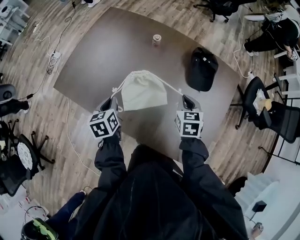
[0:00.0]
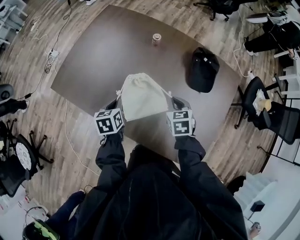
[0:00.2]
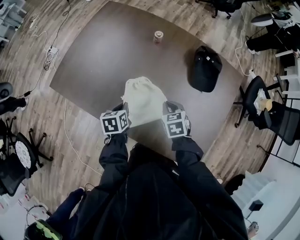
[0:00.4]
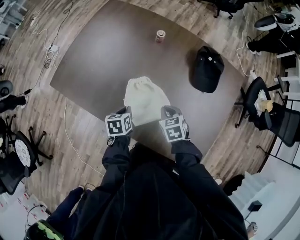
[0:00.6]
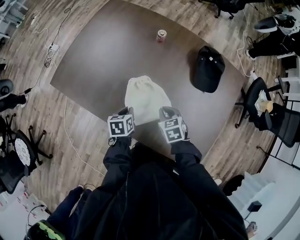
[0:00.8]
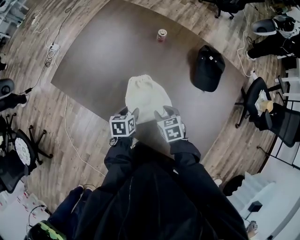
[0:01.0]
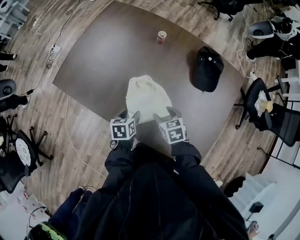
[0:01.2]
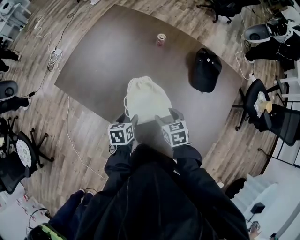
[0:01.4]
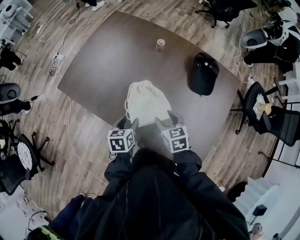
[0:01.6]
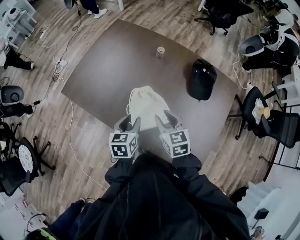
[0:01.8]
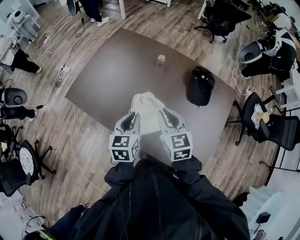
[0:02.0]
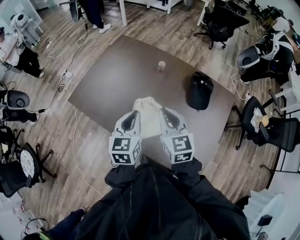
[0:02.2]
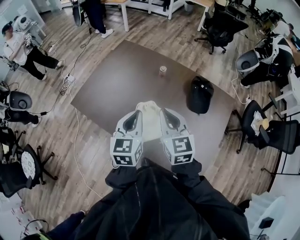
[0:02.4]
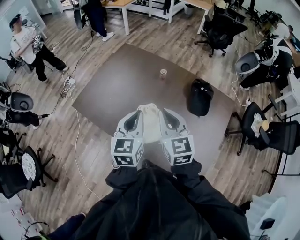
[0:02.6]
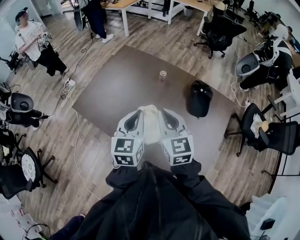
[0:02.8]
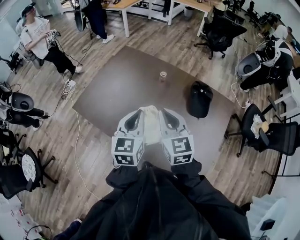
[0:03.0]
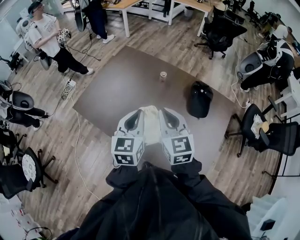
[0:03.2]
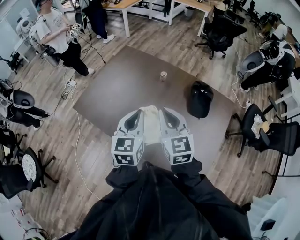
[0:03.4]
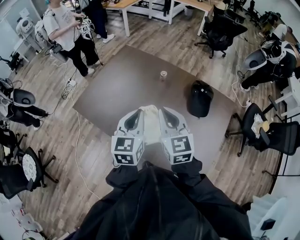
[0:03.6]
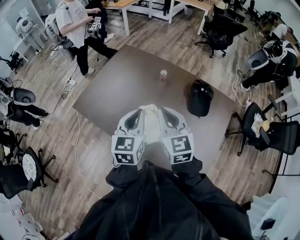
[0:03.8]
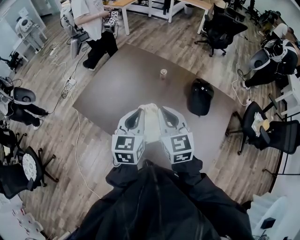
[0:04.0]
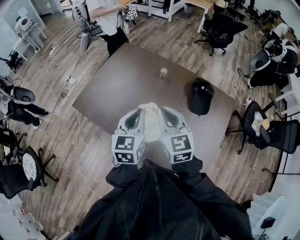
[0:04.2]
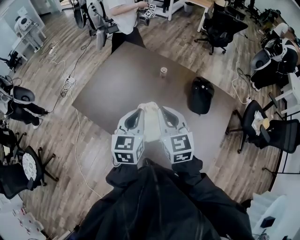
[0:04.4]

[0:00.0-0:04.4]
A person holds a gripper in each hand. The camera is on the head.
0:00.0 to 0:01.4: The left gripper travels downward, backward and to the right by about 15 cm, and opens its fingers, while the right gripper shifts some 15 cm to the left, downward and backward, changes its angle by some 20 degrees, and opens.
0:01.4 to 0:03.0: The grippers both shift upward by approximately 30 cm. The left gripper angles its fingers upward, by about 40 degrees, and closes up. Meanwhile the right gripper points its fingers about 40 degrees further upward, and closes.
0:03.0 to 0:04.4: The grippers stay close to where they were, moving slightly.

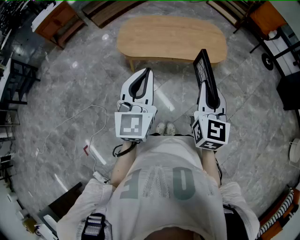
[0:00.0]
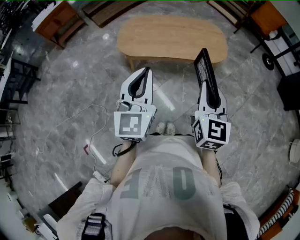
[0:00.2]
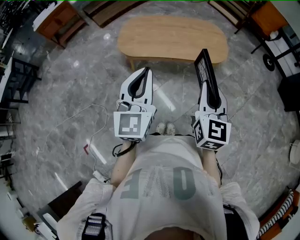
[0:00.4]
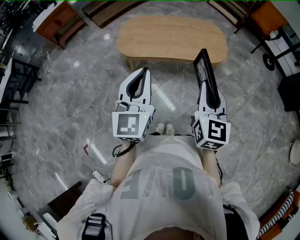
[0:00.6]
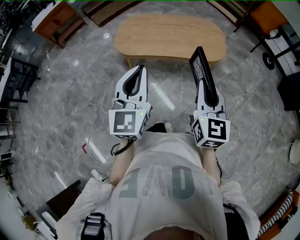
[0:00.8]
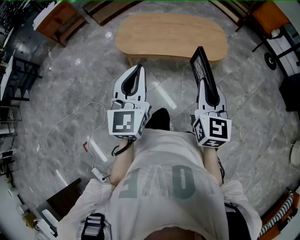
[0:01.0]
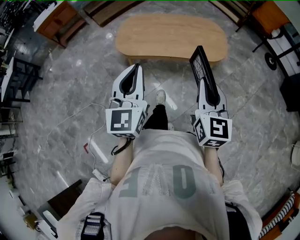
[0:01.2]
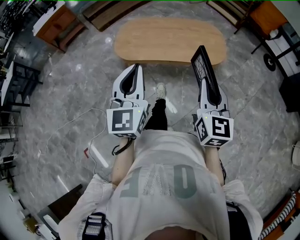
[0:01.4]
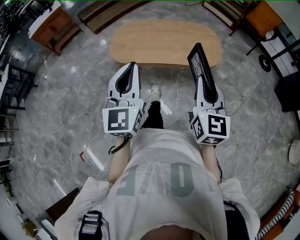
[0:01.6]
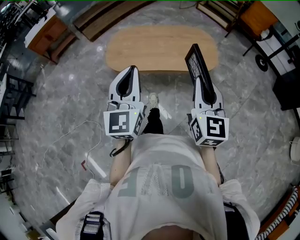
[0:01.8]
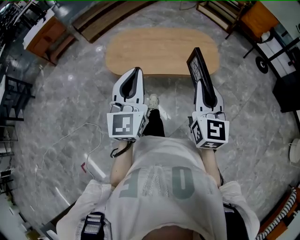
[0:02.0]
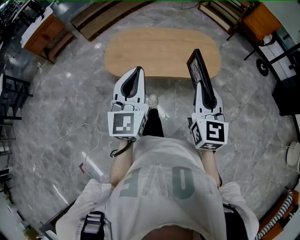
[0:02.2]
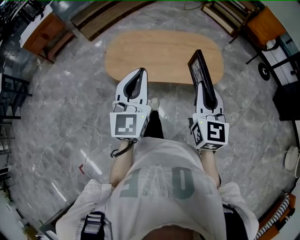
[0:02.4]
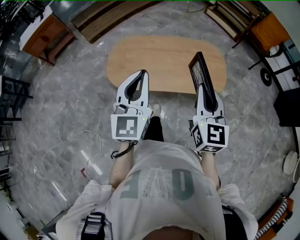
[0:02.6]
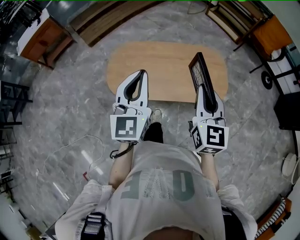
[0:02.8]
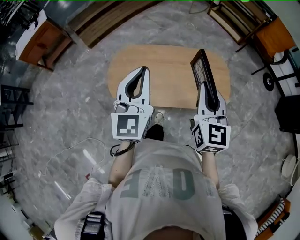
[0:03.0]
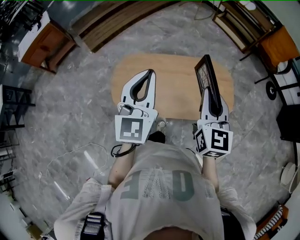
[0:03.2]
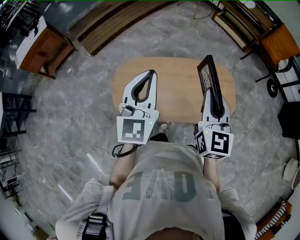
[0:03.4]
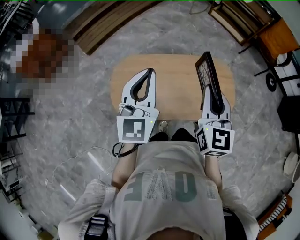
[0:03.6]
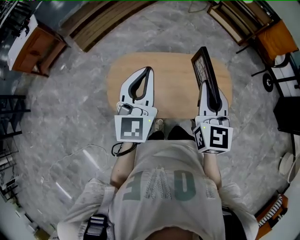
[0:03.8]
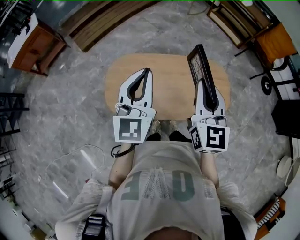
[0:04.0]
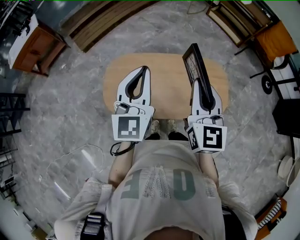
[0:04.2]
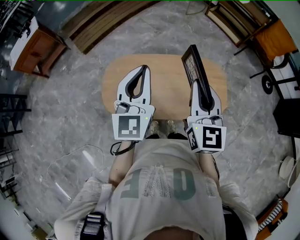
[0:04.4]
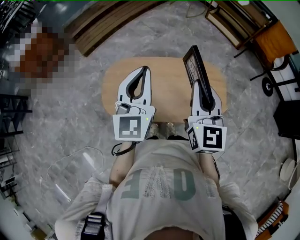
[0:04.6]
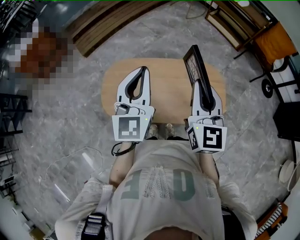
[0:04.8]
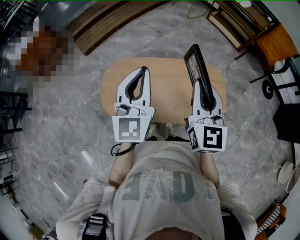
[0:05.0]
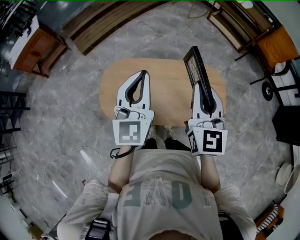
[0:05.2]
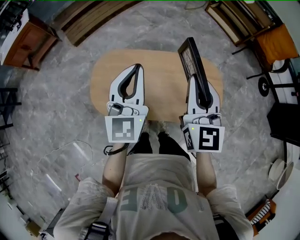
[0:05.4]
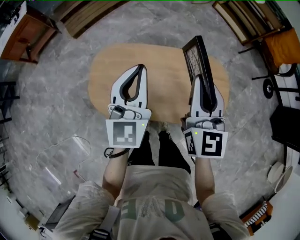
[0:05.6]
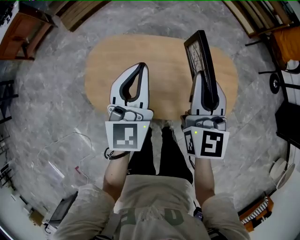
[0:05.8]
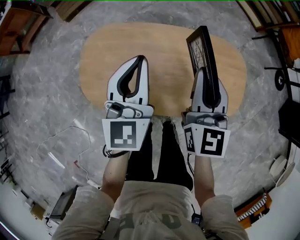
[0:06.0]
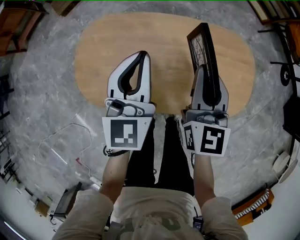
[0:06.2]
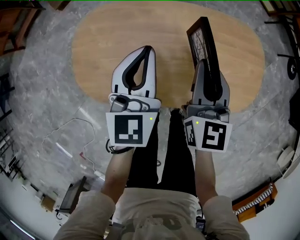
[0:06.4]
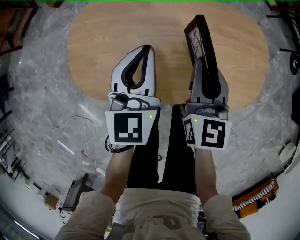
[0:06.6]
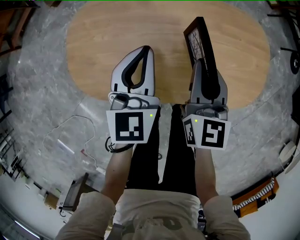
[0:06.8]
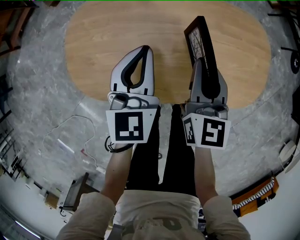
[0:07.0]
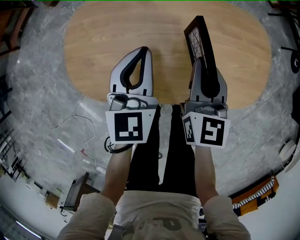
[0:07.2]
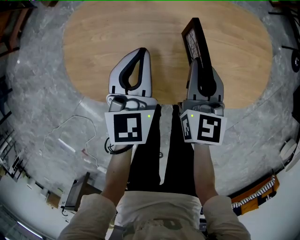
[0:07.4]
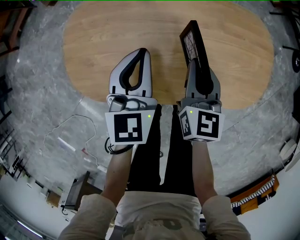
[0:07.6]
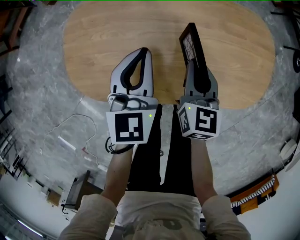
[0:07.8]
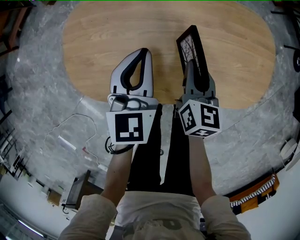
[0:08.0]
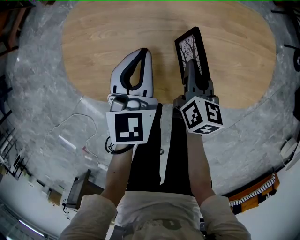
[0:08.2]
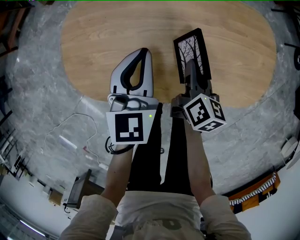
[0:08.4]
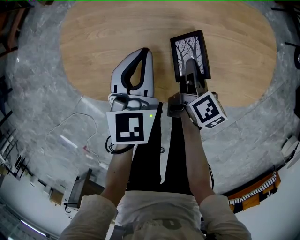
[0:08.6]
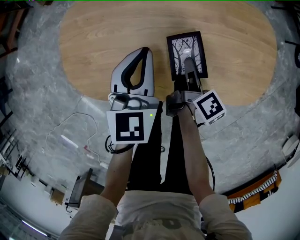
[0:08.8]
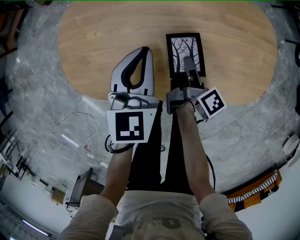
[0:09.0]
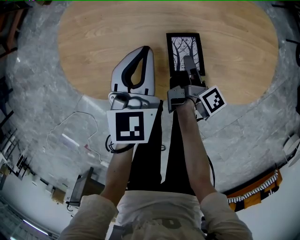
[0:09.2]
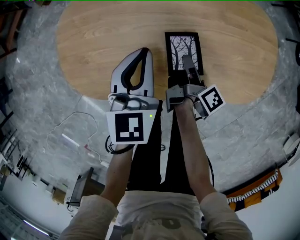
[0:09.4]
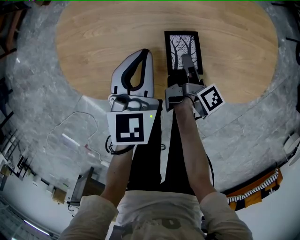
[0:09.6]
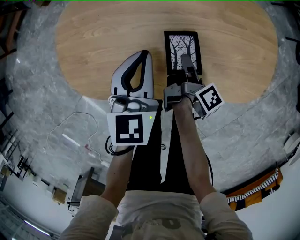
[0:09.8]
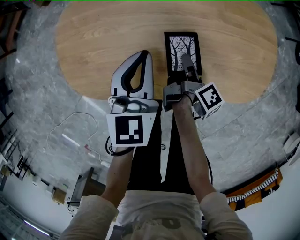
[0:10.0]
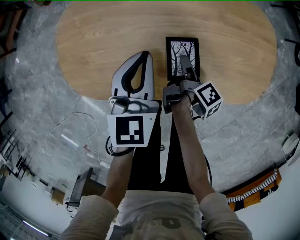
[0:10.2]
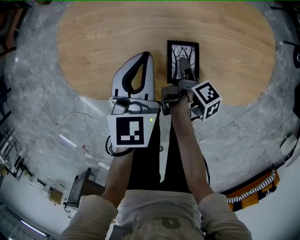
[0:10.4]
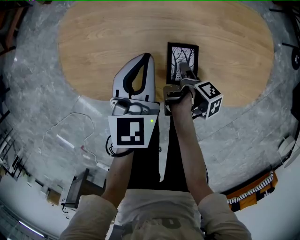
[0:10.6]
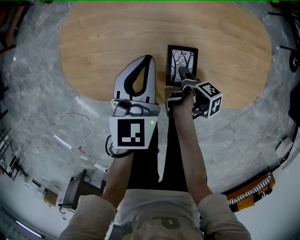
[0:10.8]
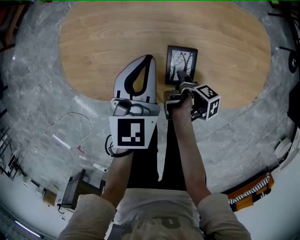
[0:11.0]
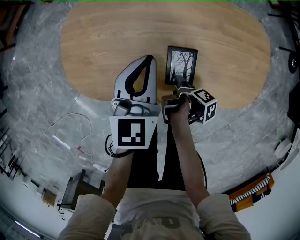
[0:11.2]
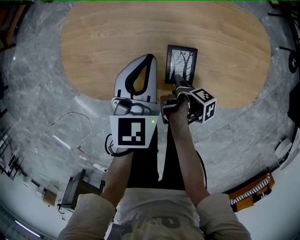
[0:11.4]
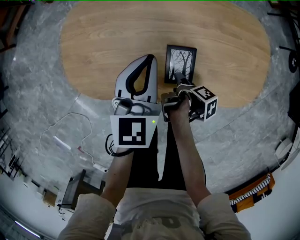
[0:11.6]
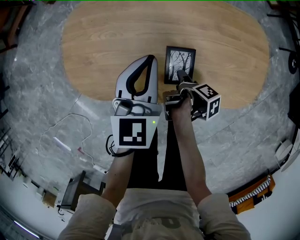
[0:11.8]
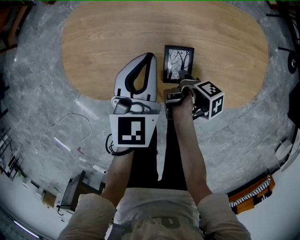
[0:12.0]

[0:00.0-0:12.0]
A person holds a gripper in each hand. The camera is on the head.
0:00.0 to 0:01.6: The right gripper shifts by about 5 cm.
0:01.6 to 0:03.0: The grippers both shift forward by about 35 cm.
0:03.0 to 0:04.4: The grippers both shift forward by approximately 10 cm.
0:04.4 to 0:06.0: The left gripper heads downward, covering some 20 cm; the right gripper shifts some 20 cm downward and forward.
0:06.0 to 0:07.6: The grippers both shift downward by roughly 20 cm.
0:07.6 to 0:09.0: The right gripper is displaced downward by about 10 cm, and twists approximately 80 degrees clockwise, seen from behind.
0:09.0 to 0:10.4: The right gripper turns by about 20 degrees, and opens its fingers.
0:10.4 to 0:12.0: The right gripper closes its fingers.

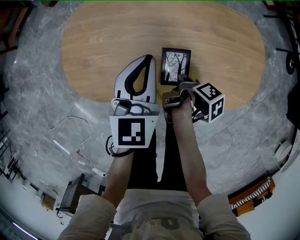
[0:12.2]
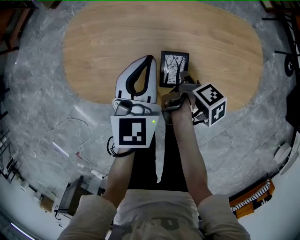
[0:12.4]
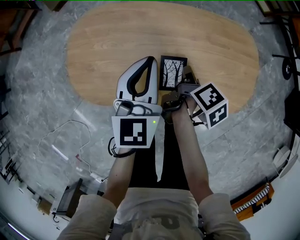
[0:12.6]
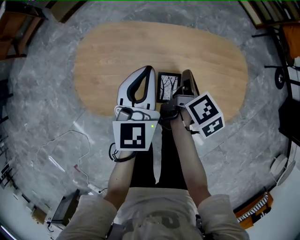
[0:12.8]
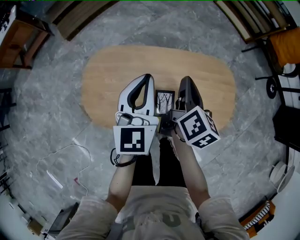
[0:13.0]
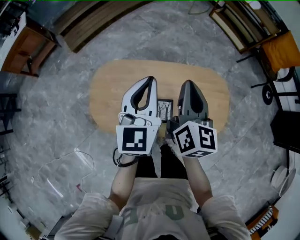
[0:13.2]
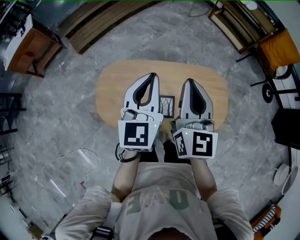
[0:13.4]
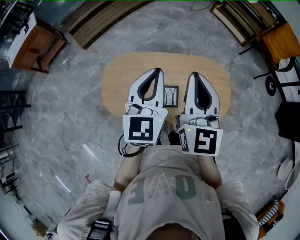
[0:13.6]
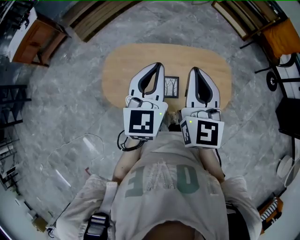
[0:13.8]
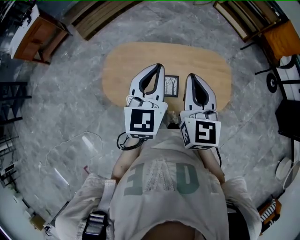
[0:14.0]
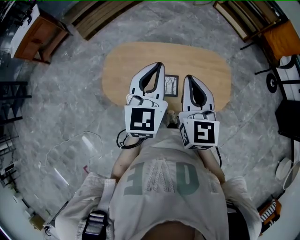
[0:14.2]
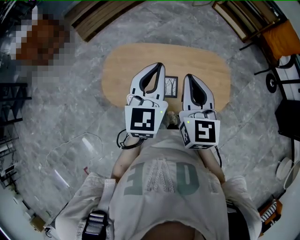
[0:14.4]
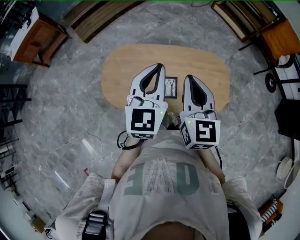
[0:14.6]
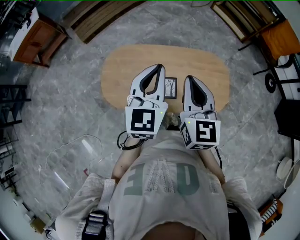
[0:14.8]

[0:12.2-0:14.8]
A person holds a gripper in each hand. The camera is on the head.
0:12.2 to 0:13.4: The right gripper travels upward by roughly 50 cm, and tips its fingers upward by roughly 60 degrees. The left gripper shifts approximately 30 cm upward.
0:13.4 to 0:14.8: The grippers both shift backward by approximately 10 cm.

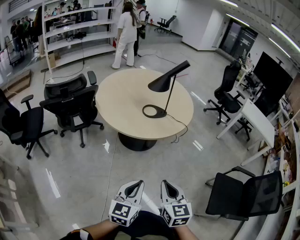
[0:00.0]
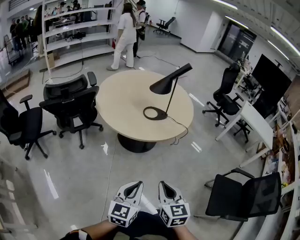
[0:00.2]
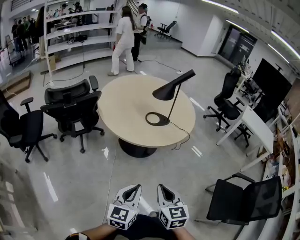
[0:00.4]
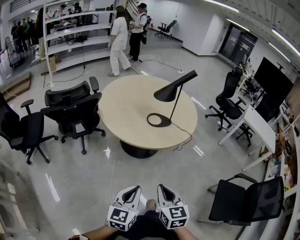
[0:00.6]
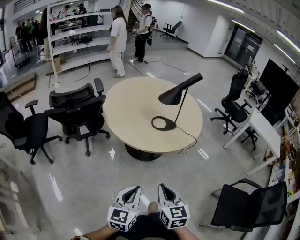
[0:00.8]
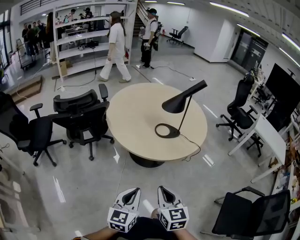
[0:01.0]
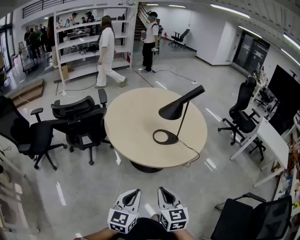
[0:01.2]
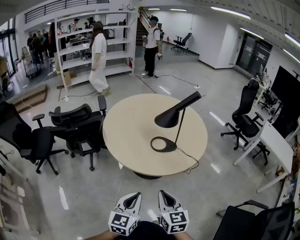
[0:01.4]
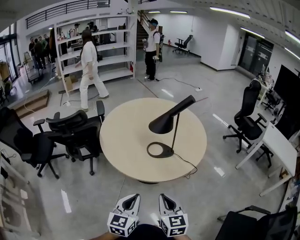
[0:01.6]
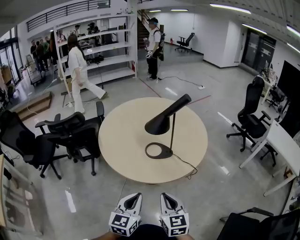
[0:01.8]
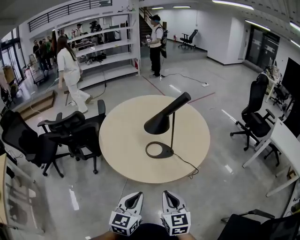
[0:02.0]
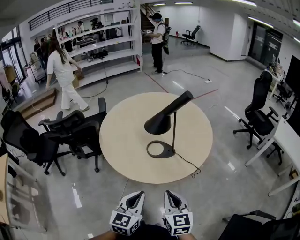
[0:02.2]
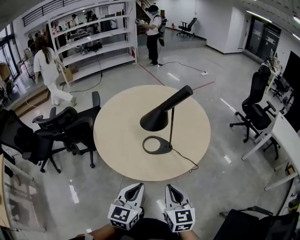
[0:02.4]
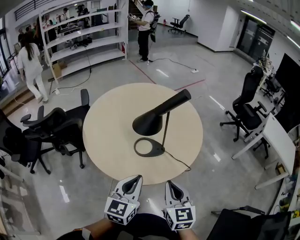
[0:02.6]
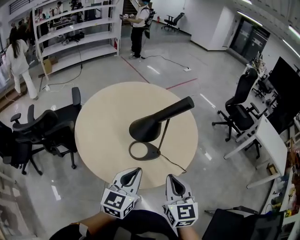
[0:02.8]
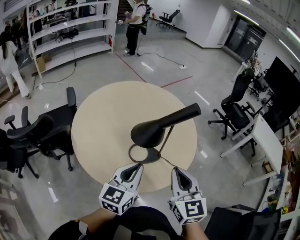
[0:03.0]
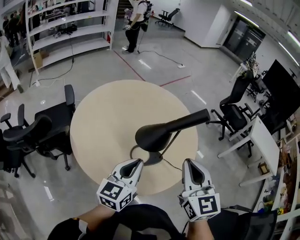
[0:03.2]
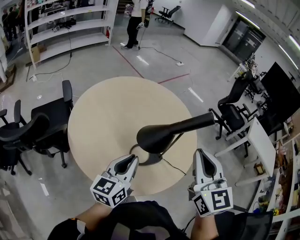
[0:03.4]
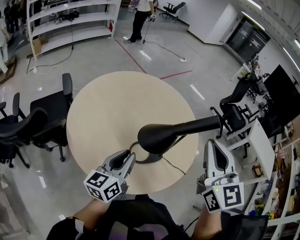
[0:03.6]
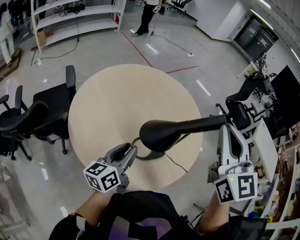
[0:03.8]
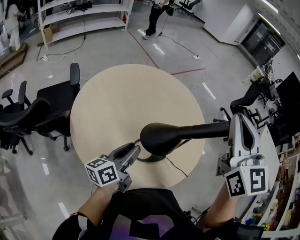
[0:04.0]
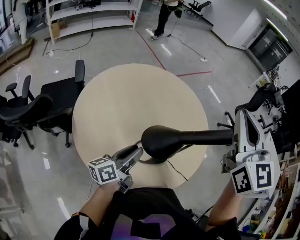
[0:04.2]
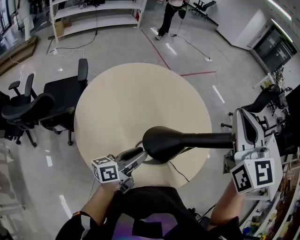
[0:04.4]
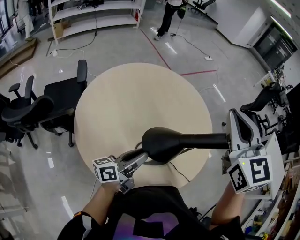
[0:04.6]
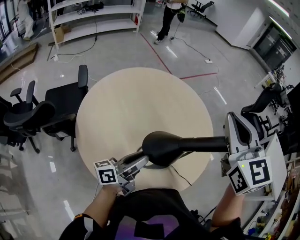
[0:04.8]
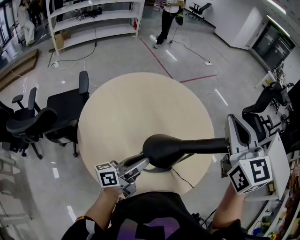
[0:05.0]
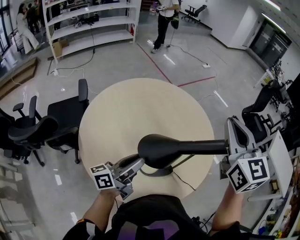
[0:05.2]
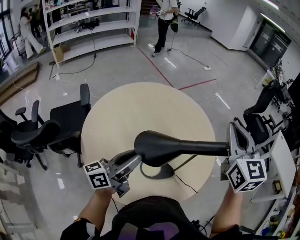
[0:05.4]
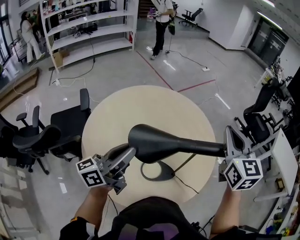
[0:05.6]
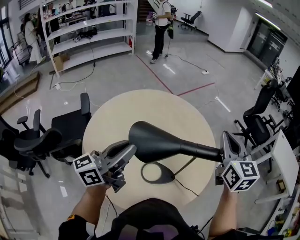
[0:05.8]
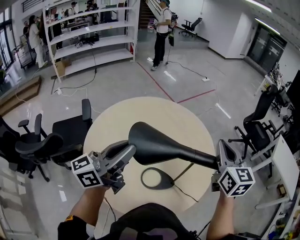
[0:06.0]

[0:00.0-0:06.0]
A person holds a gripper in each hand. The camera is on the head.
0:00.0 to 0:01.6: The grippers both shift forward by roughly 25 cm.
0:01.6 to 0:03.0: Both grippers move forward, roughly 30 cm.
0:03.0 to 0:04.4: The left gripper travels forward, to the left and downward by about 20 cm, twists approximately 40 degrees counterclockwise, seen from behind, and opens its fingers. Meanwhile the right gripper goes approximately 30 cm forward and upward.
0:04.4 to 0:06.0: The left gripper goes some 20 cm upward, and rotates approximately 30 degrees. Meanwhile the right gripper shifts some 15 cm to the right and downward, and rotates about 20 degrees.
